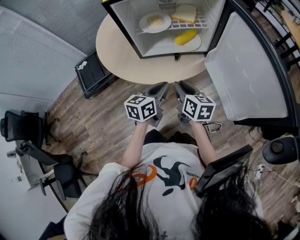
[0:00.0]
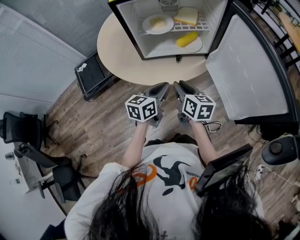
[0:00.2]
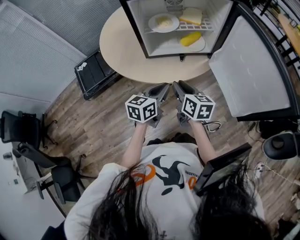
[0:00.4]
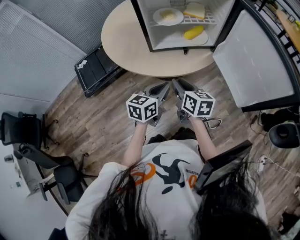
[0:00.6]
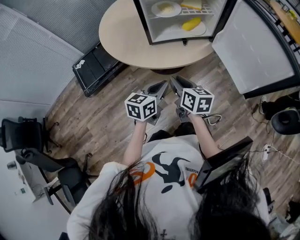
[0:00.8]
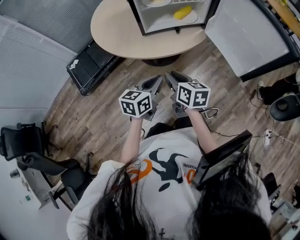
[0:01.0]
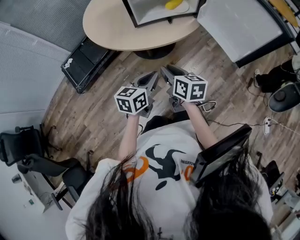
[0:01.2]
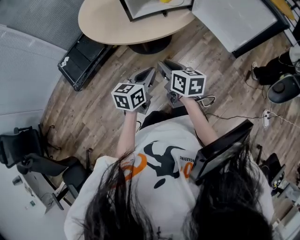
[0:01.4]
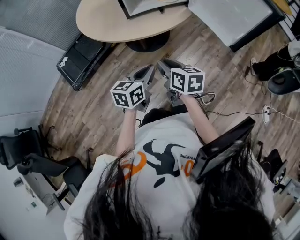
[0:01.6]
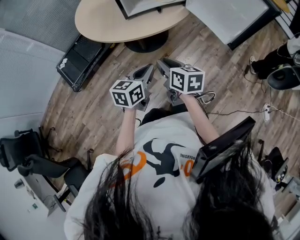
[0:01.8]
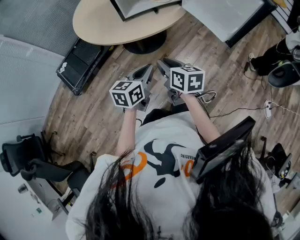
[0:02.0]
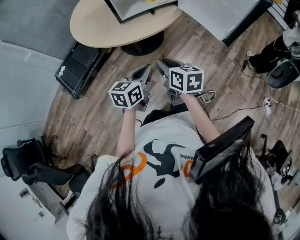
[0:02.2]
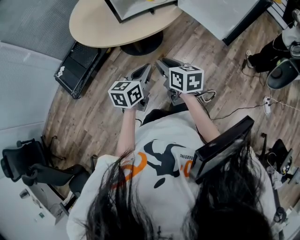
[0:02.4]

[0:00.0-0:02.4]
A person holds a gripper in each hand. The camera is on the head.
0:00.0 to 0:01.2: The grippers both shift backward and to the left by about 20 cm.
0:01.2 to 0:02.4: The right gripper changes place by about 5 cm.

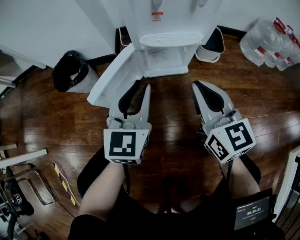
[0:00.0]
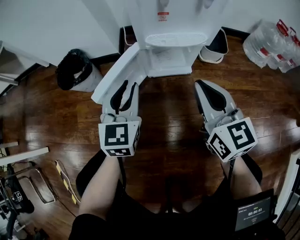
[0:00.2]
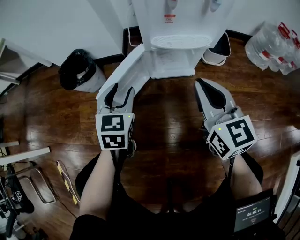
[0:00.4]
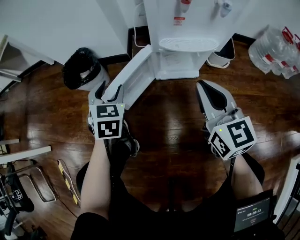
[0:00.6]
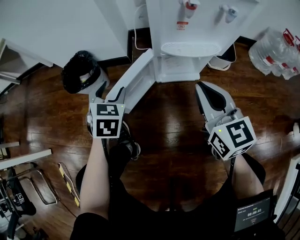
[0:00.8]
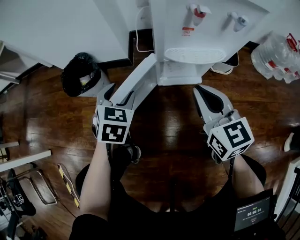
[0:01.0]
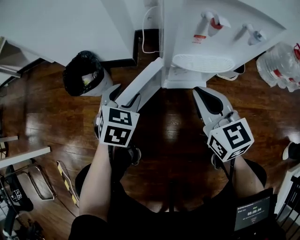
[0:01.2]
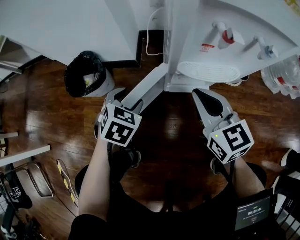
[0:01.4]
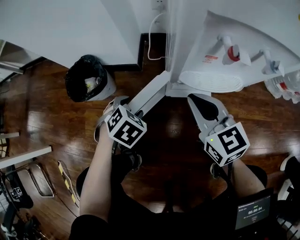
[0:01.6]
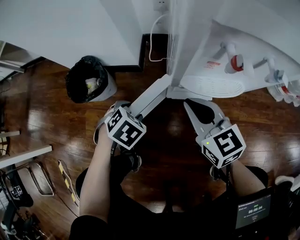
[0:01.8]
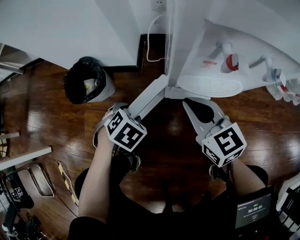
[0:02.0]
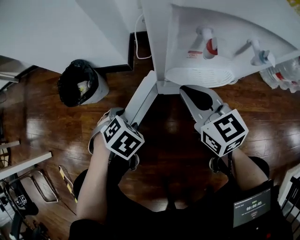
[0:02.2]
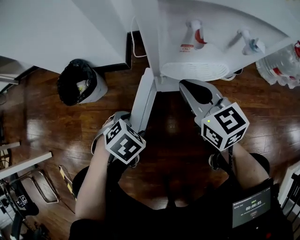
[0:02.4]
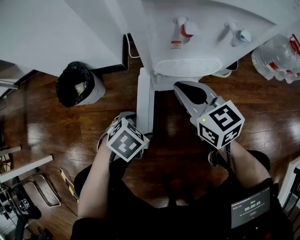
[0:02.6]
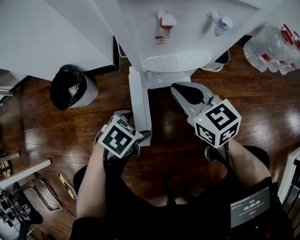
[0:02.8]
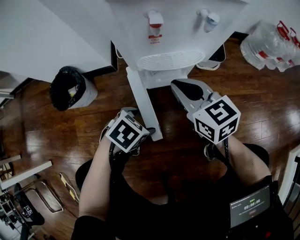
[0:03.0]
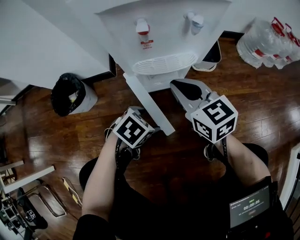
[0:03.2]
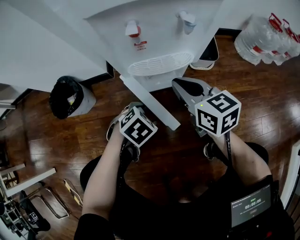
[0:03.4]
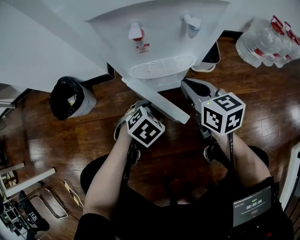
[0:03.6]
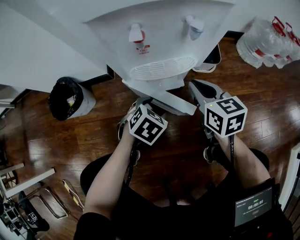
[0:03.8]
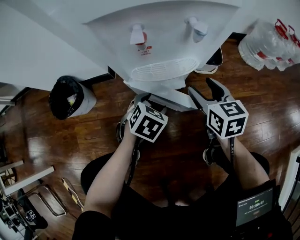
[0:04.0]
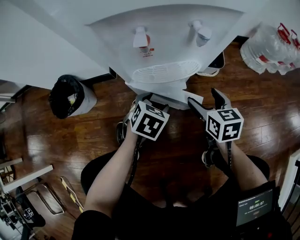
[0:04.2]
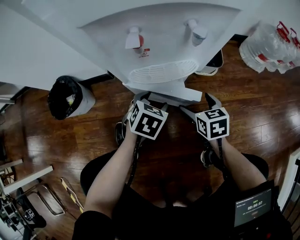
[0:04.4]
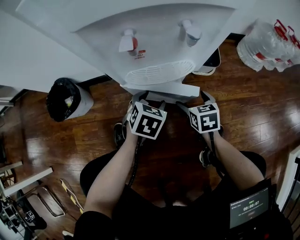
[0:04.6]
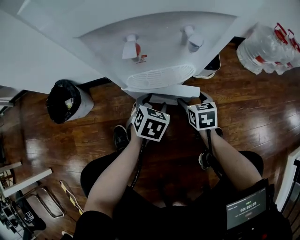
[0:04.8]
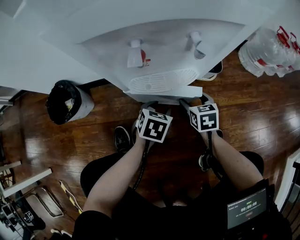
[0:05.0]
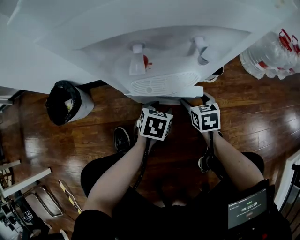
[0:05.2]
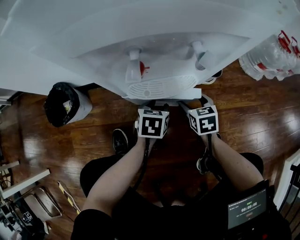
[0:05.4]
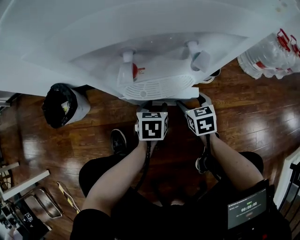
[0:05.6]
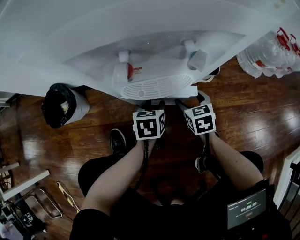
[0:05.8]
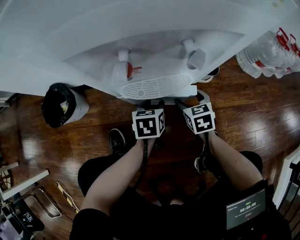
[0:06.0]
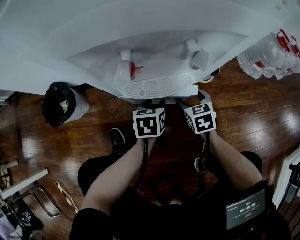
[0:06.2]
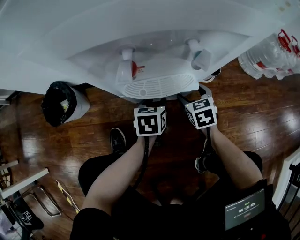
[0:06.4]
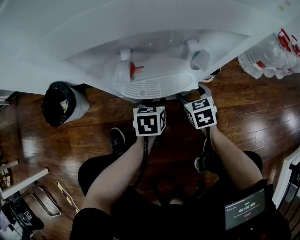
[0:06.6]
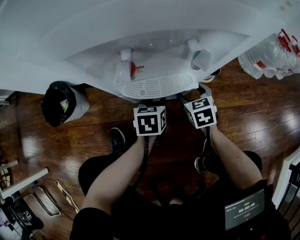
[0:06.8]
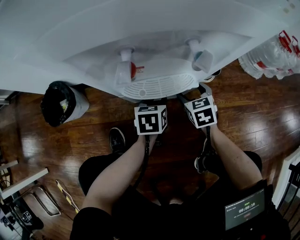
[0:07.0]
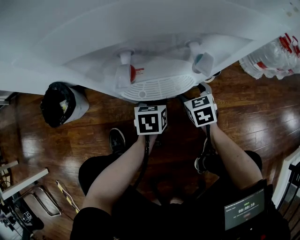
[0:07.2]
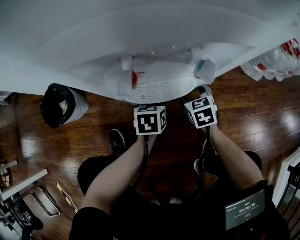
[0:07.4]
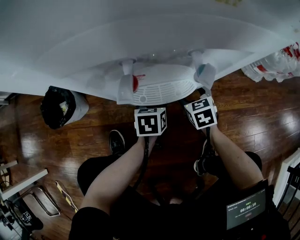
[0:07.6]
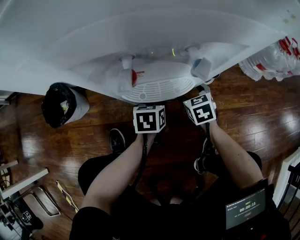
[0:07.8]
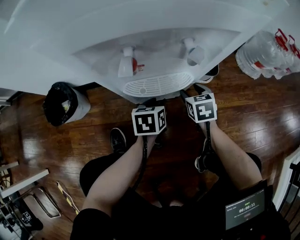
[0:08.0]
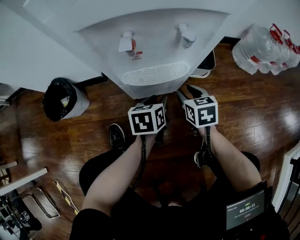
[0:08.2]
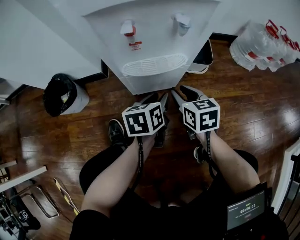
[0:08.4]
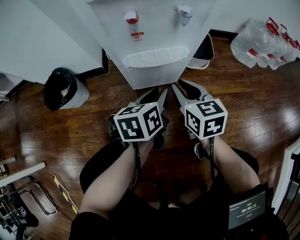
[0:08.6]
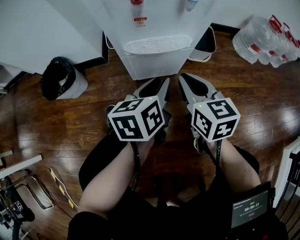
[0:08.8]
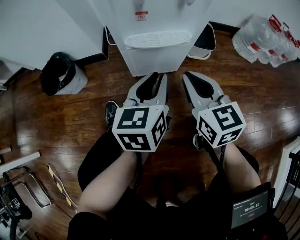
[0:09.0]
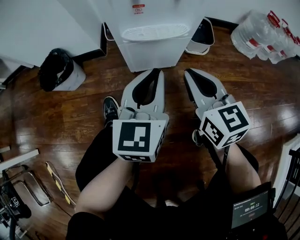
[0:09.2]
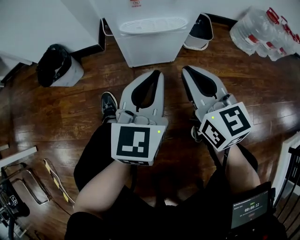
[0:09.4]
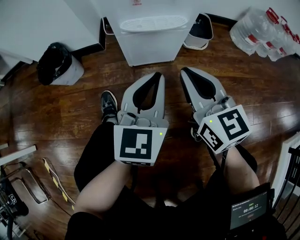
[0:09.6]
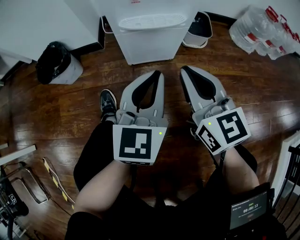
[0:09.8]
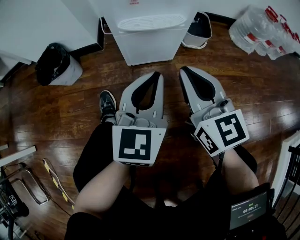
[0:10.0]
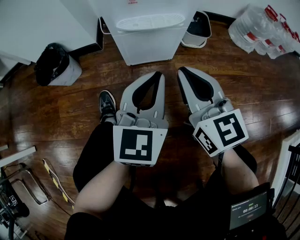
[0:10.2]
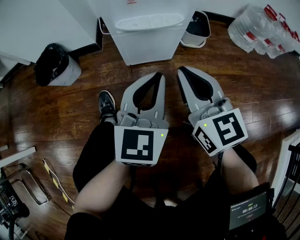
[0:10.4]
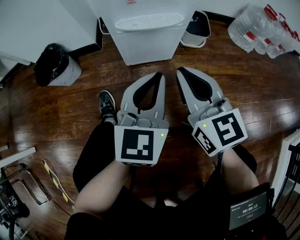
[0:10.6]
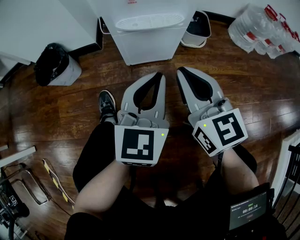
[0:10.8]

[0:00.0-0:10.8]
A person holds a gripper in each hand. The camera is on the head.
0:00.0 to 0:01.6: The right gripper heads forward and to the left, covering roughly 15 cm. The left gripper is displaced downward, to the left and forward by about 25 cm, points its fingers about 60 degrees further downward, and opens up.
0:01.6 to 0:03.0: The right gripper ends up some 5 cm from where it was. Meanwhile the left gripper changes place by some 15 cm, and turns by approximately 30 degrees.
0:03.0 to 0:04.6: The right gripper moves downward and to the right, approximately 20 cm, turns by about 30 degrees, and opens its fingers. Meanwhile the left gripper goes some 15 cm forward, and turns by roughly 30 degrees.
0:04.6 to 0:06.2: The left gripper changes its angle by approximately 30 degrees. Meanwhile the right gripper goes about 5 cm forward.
0:06.2 to 0:07.8: There are only small adjustments of the grippers.
0:07.8 to 0:09.2: The two grippers go some 25 cm upward and backward. The left gripper angles its fingers upward, by approximately 40 degrees, and closes its fingers, while the right gripper tilts its fingers roughly 30 degrees upward, and closes its fingers.
0:09.2 to 0:10.8: The grippers move only a little.

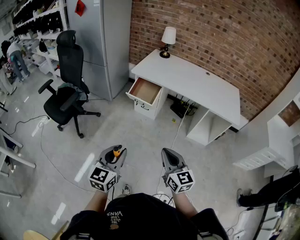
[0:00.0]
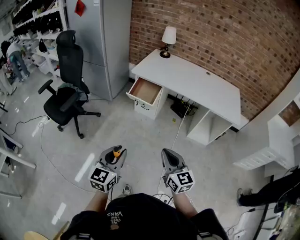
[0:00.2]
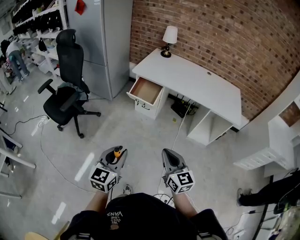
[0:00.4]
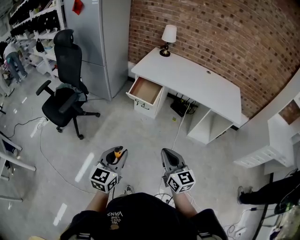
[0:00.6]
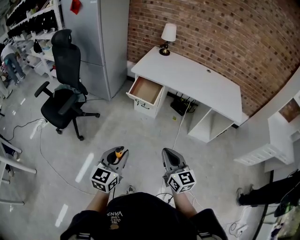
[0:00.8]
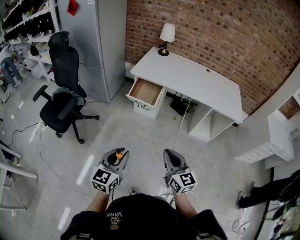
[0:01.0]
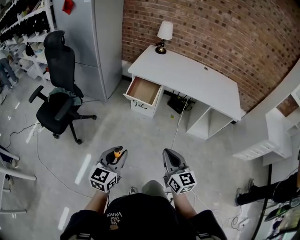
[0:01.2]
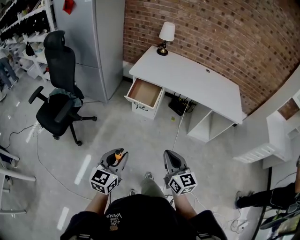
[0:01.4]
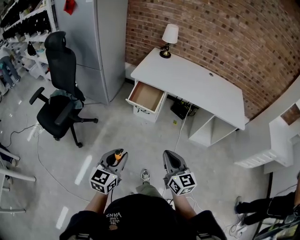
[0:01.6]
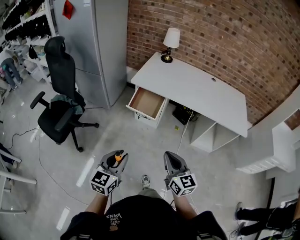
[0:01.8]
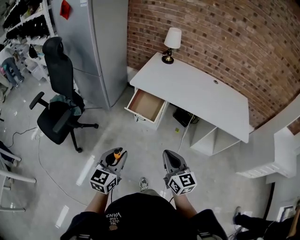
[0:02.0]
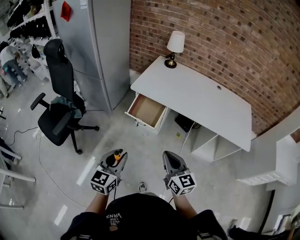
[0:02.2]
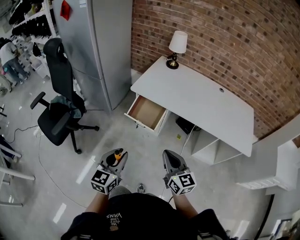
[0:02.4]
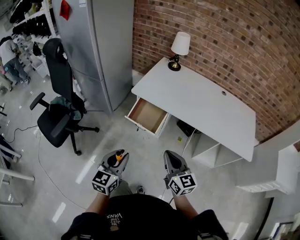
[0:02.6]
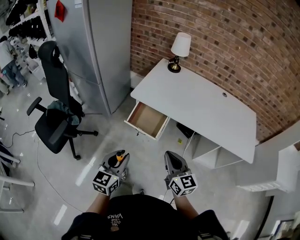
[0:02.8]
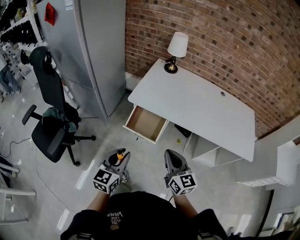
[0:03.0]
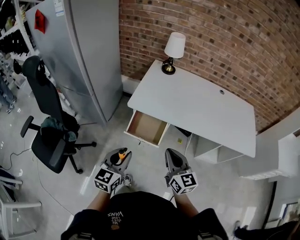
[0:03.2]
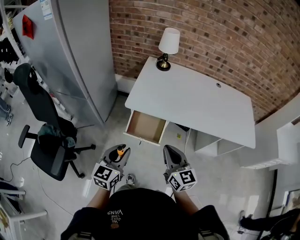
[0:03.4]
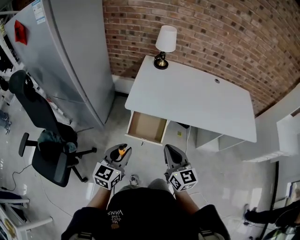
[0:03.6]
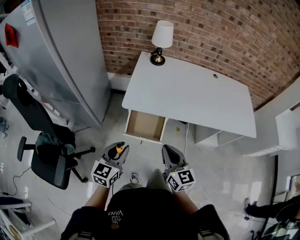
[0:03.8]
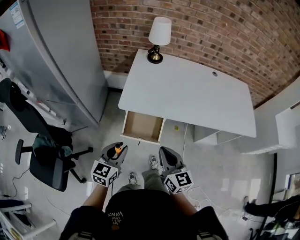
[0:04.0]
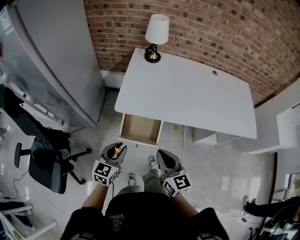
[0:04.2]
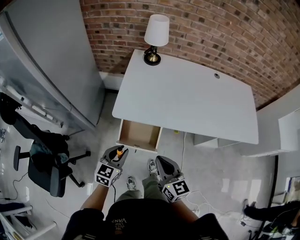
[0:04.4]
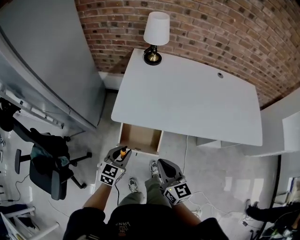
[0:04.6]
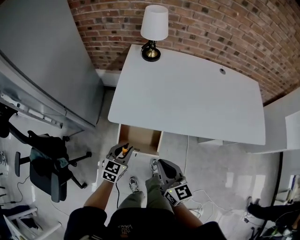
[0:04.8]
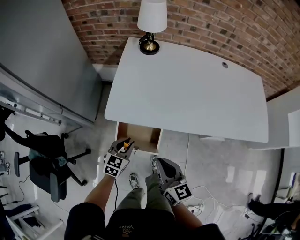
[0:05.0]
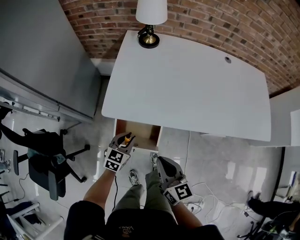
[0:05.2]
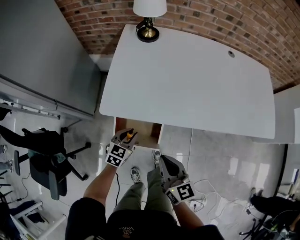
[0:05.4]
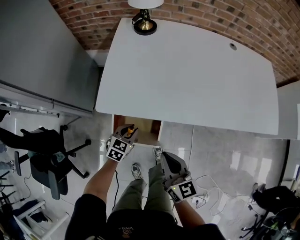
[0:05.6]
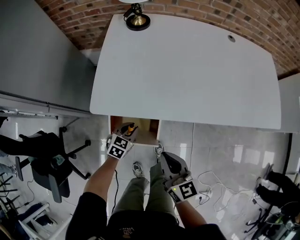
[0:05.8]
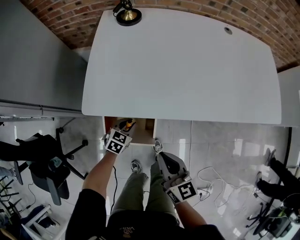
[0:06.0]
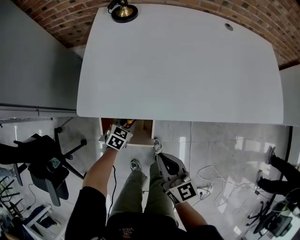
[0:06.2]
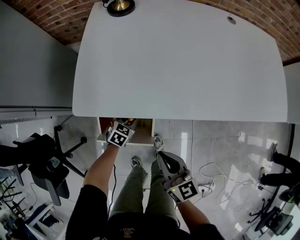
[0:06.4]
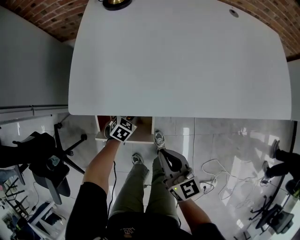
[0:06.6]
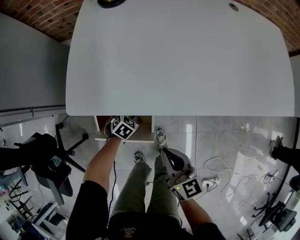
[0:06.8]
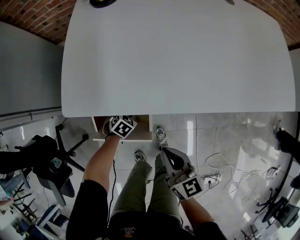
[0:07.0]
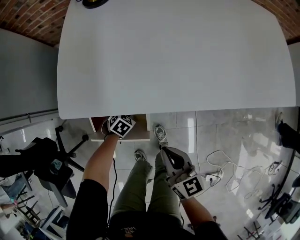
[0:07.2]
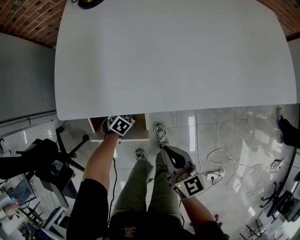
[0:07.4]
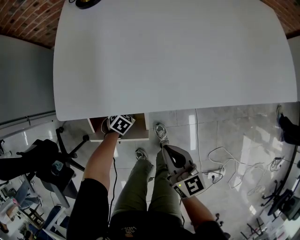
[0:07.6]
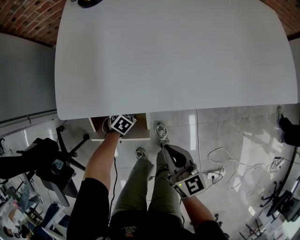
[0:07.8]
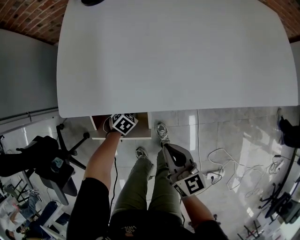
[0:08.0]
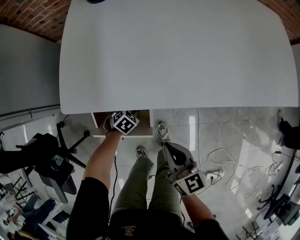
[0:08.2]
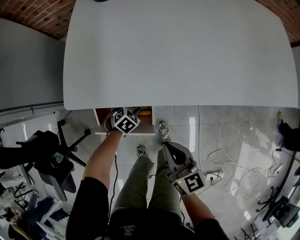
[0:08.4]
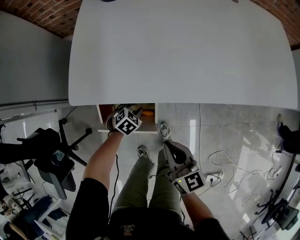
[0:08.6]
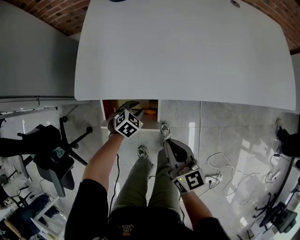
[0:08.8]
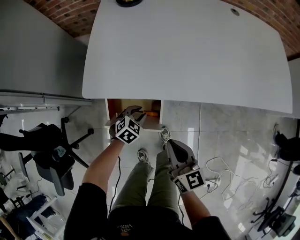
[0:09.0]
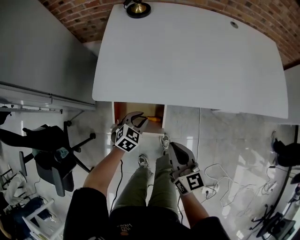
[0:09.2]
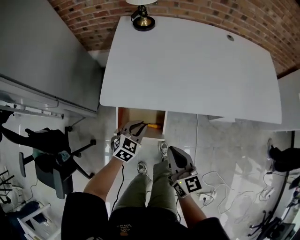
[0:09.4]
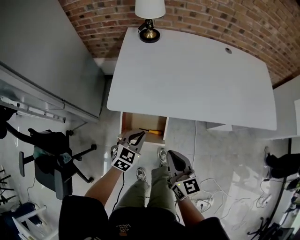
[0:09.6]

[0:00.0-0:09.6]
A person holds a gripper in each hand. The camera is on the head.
0:00.0 to 0:01.6: Both grippers move forward and to the left, approximately 15 cm.
0:01.6 to 0:03.2: The two grippers go some 35 cm forward.
0:03.2 to 0:04.8: The right gripper moves forward and downward, about 15 cm. Meanwhile the left gripper goes about 30 cm forward and downward, and rotates roughly 20 degrees.
0:04.8 to 0:06.4: The left gripper heads downward and forward, covering some 30 cm, and swivels approximately 30 degrees. The right gripper travels downward and to the right by about 15 cm.
0:06.4 to 0:08.0: The left gripper moves downward, about 10 cm, and turns by approximately 20 degrees. Meanwhile the right gripper goes about 5 cm downward.
0:08.0 to 0:09.6: The right gripper moves upward, to the left and backward, some 15 cm, while the left gripper shifts approximately 30 cm upward, tips its fingers upward by approximately 40 degrees, and closes.
